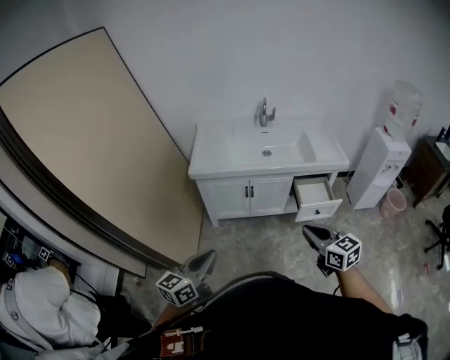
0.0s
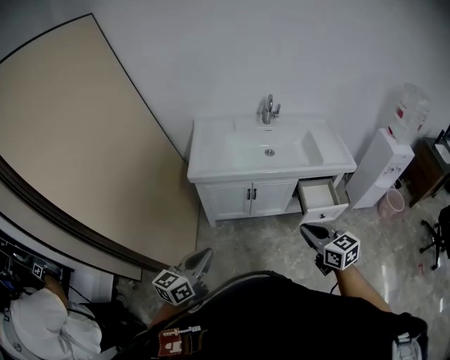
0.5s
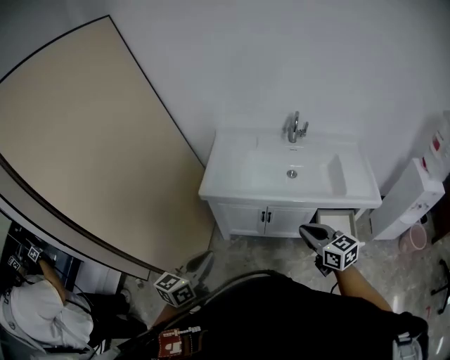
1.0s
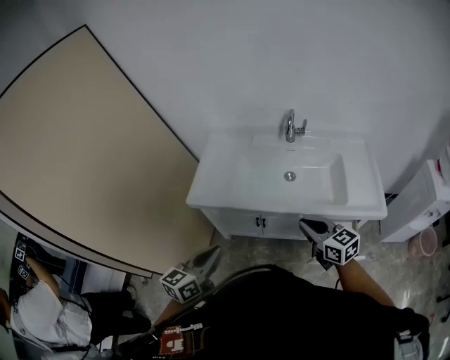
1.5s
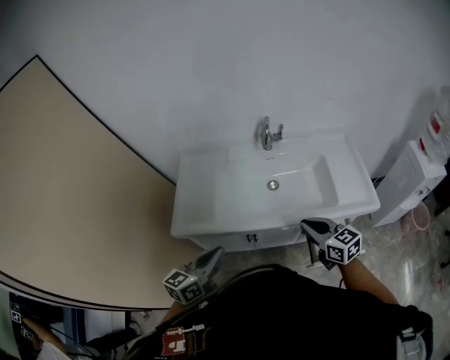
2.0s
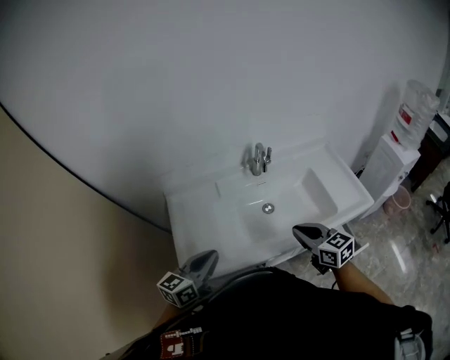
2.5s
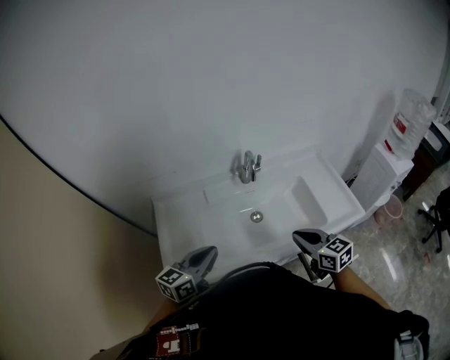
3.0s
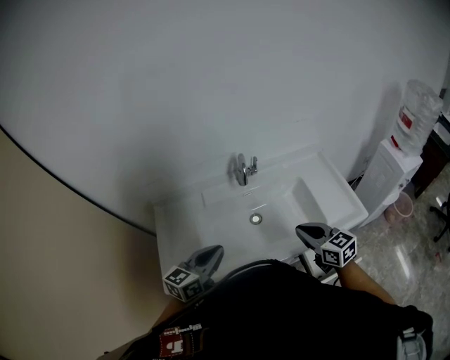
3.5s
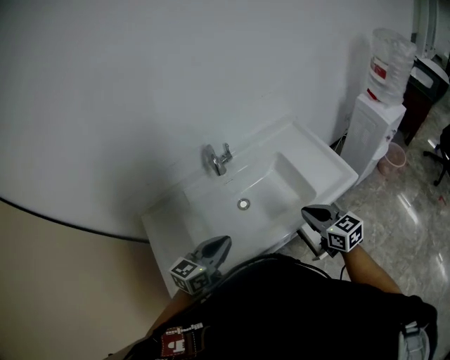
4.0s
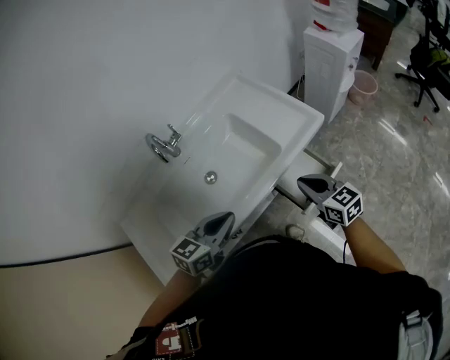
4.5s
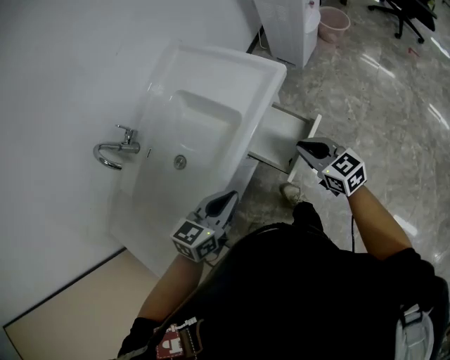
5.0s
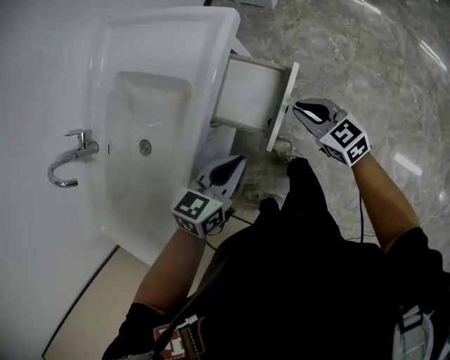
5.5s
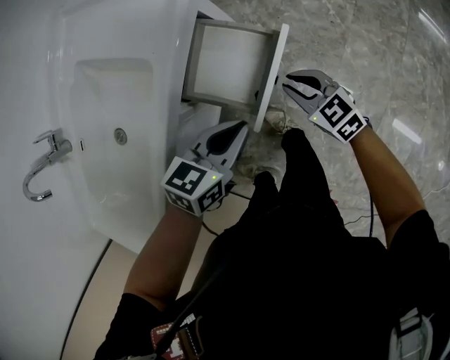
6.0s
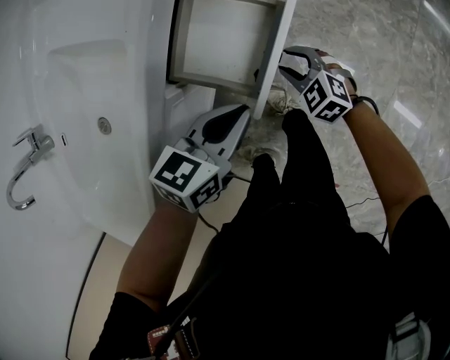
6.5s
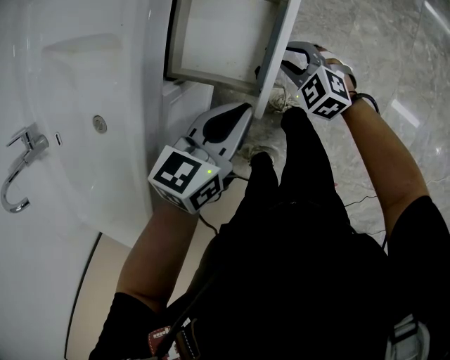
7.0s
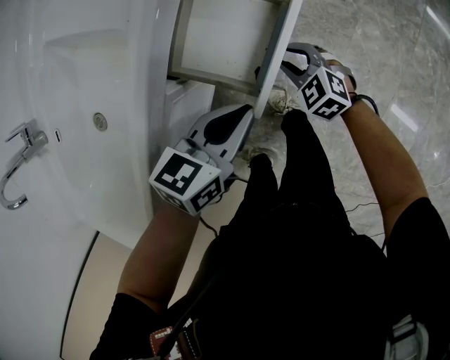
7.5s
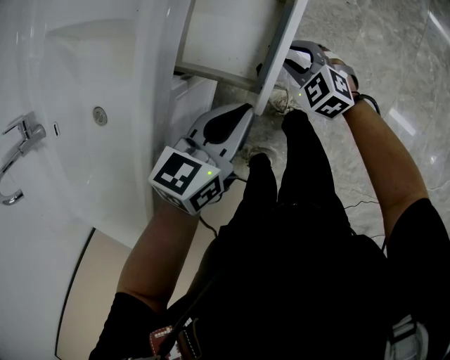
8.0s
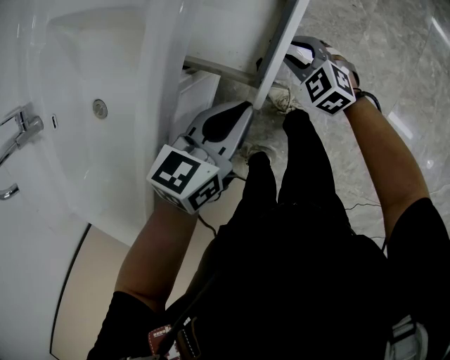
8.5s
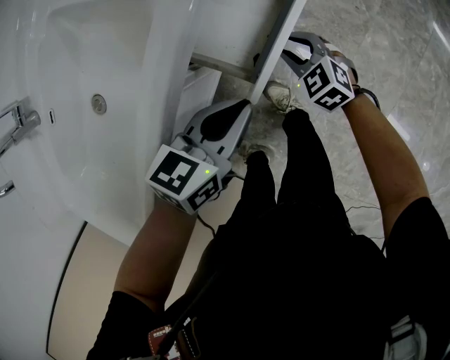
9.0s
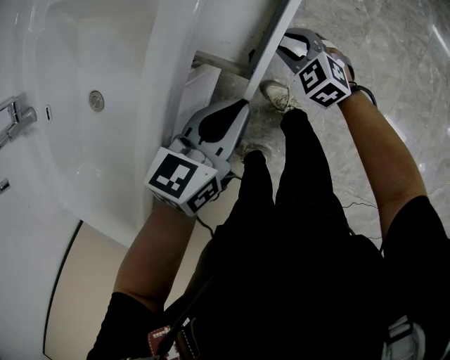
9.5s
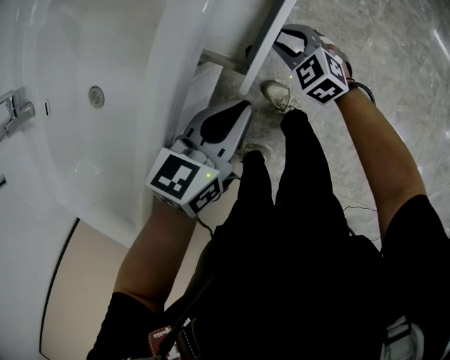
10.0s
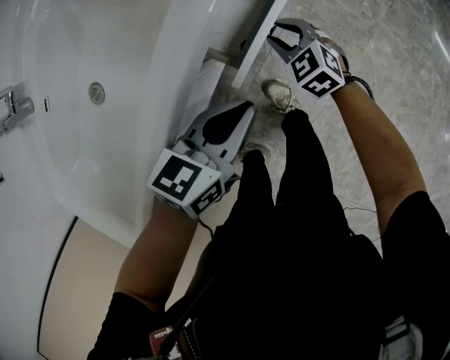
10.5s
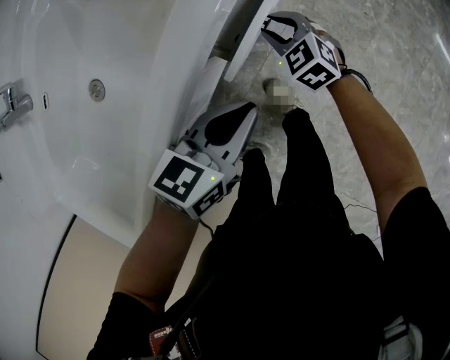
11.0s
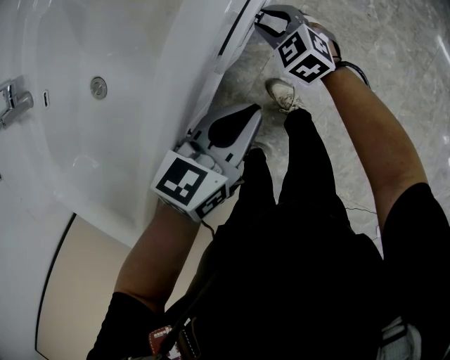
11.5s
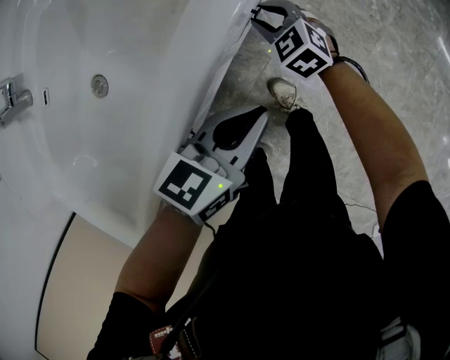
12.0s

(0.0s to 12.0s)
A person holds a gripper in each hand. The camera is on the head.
0.0s - 2.0s: Both grippers are carried forward, some 50 cm.
2.0s - 4.0s: The right gripper moves some 10 cm, and turns by roughly 30 degrees. Meanwhile the left gripper changes place by about 20 cm, and turns by roughly 30 degrees.
4.0s - 6.0s: The left gripper changes place by roughly 50 cm, and turns by approximately 50 degrees, while the right gripper heads downward, covering roughly 35 cm, and rotates some 30 degrees.
6.0s - 8.0s: The right gripper goes roughly 10 cm downward, and turns by about 20 degrees.
8.0s - 10.0s: Both grippers move to the left, roughly 5 cm.
10.0s - 12.0s: The right gripper moves to the left and forward, roughly 10 cm.

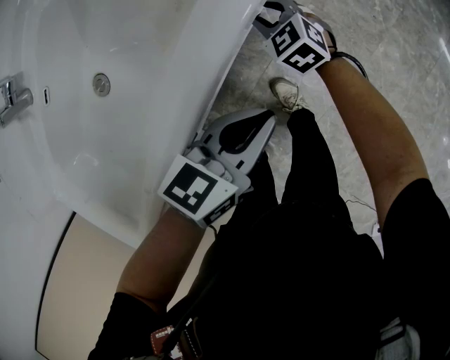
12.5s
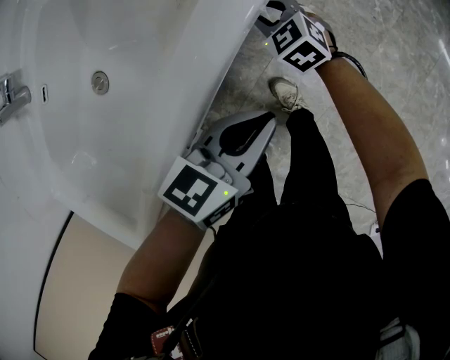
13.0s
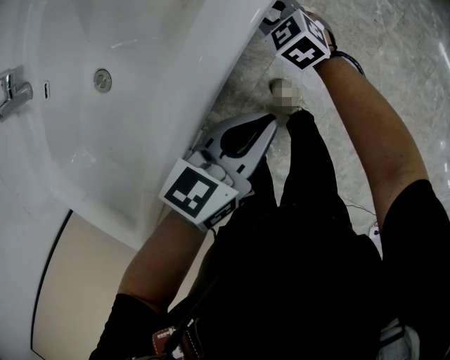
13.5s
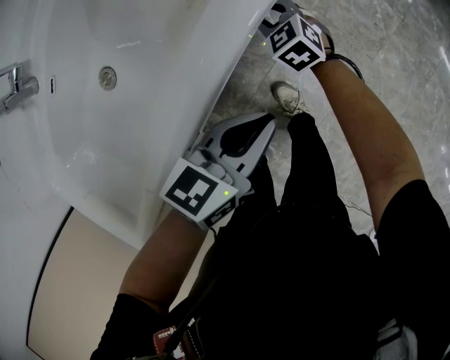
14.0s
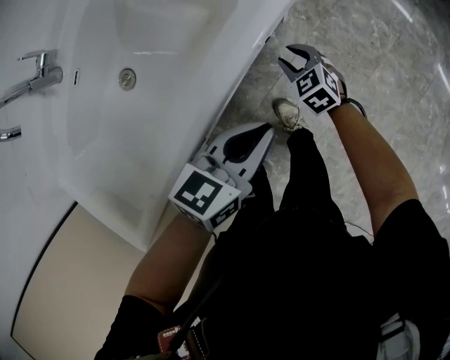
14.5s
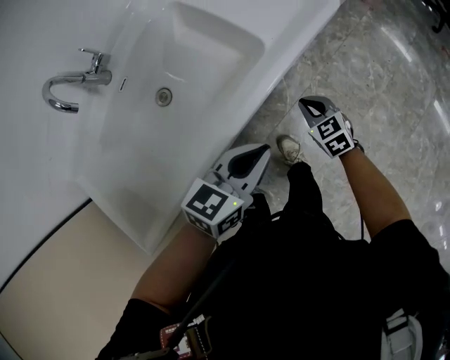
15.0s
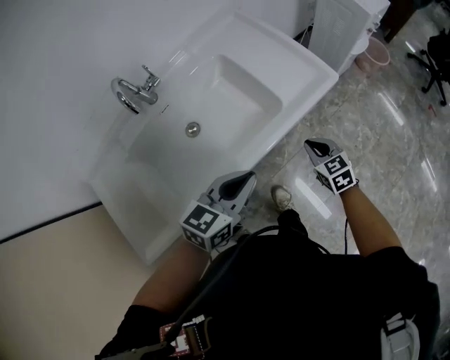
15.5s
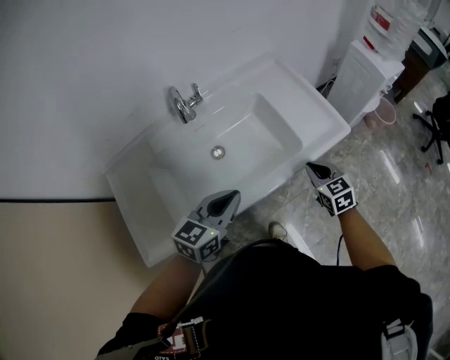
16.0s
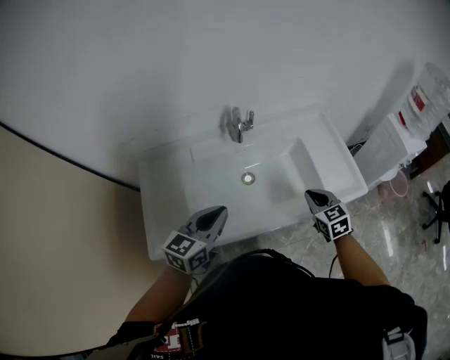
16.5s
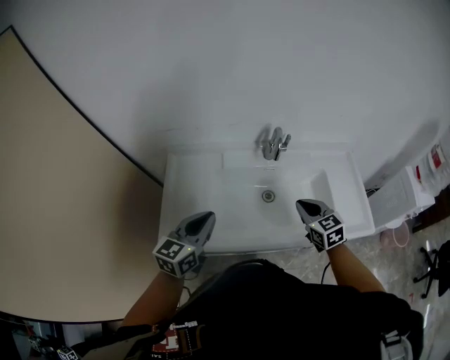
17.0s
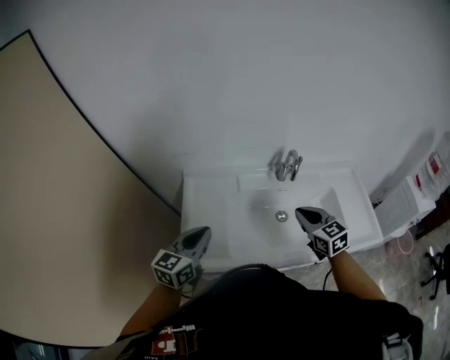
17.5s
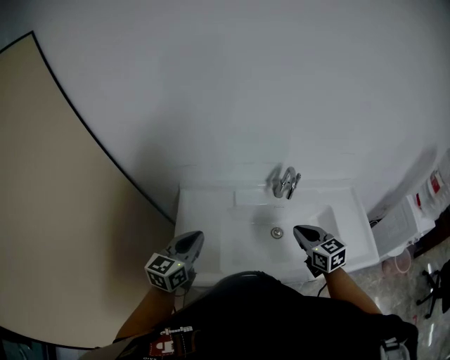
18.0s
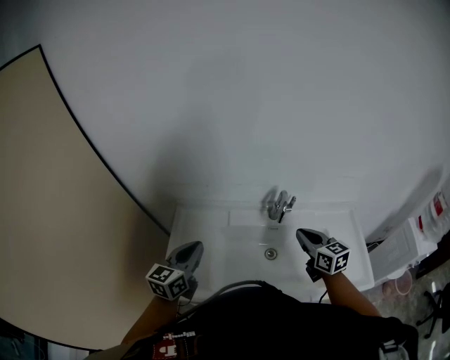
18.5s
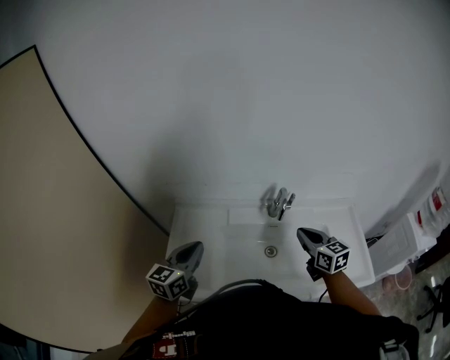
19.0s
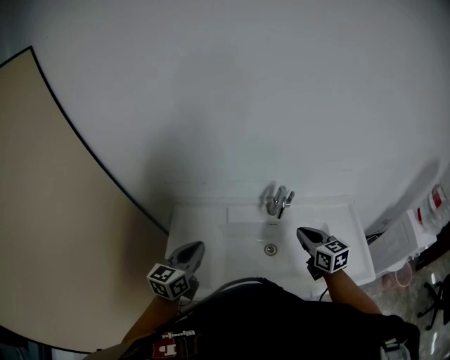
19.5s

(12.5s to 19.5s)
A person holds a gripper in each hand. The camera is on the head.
12.5s - 14.5s: The left gripper shifts by about 5 cm, while the right gripper heads backward, covering approximately 5 cm.
14.5s - 16.0s: The left gripper travels upward and to the left by some 30 cm, and swivels some 30 degrees, while the right gripper moves upward, about 35 cm, and closes its fingers.
16.0s - 17.5s: The left gripper shifts by approximately 35 cm, and turns by approximately 40 degrees, while the right gripper ends up roughly 35 cm from where it was, and changes its angle by approximately 30 degrees.
17.5s - 19.5s: The left gripper shifts roughly 10 cm forward and to the right. The right gripper moves to the right and forward, roughly 10 cm.

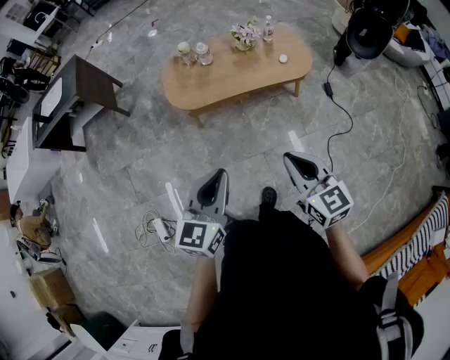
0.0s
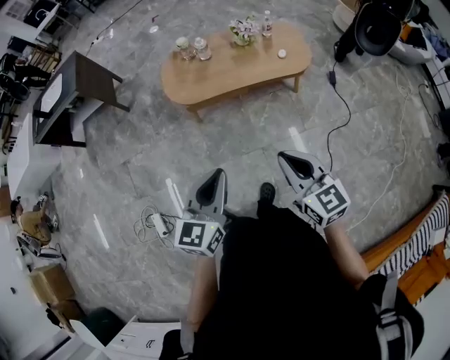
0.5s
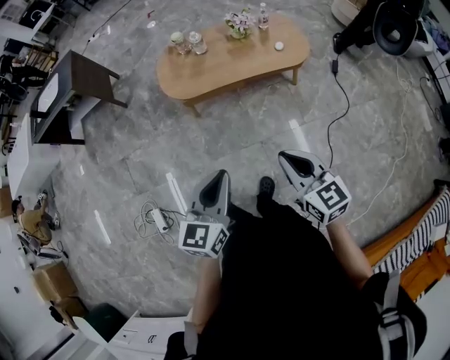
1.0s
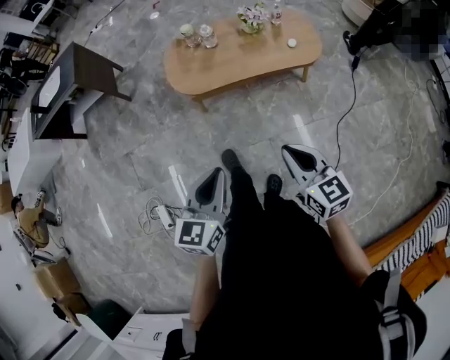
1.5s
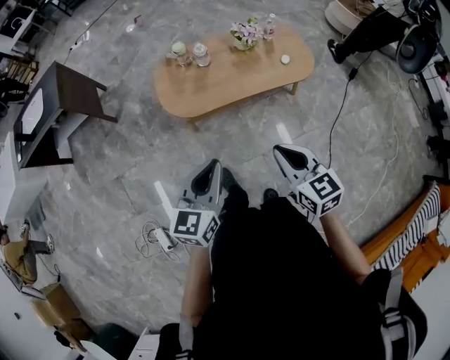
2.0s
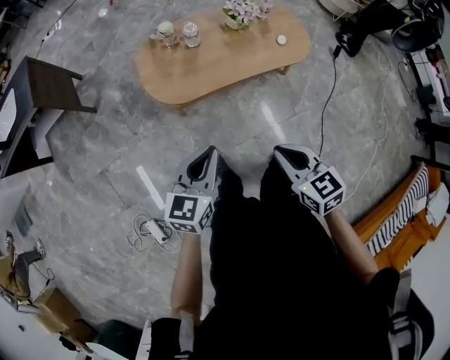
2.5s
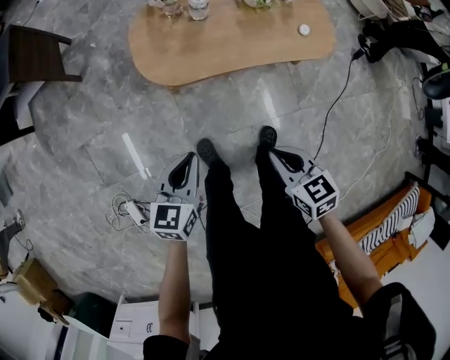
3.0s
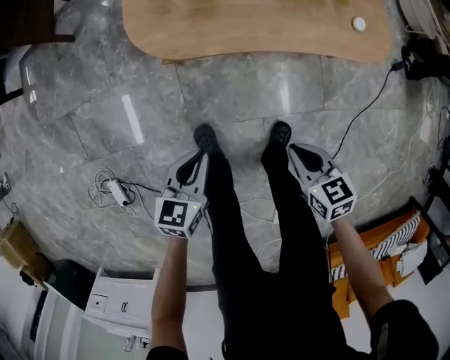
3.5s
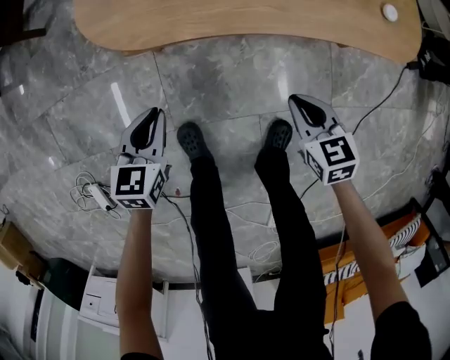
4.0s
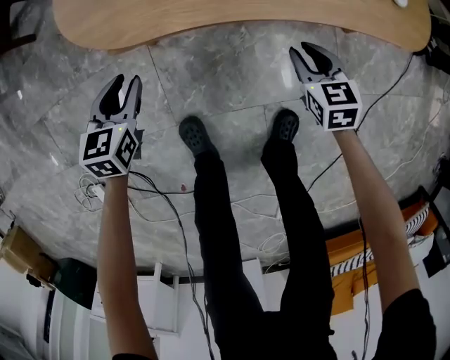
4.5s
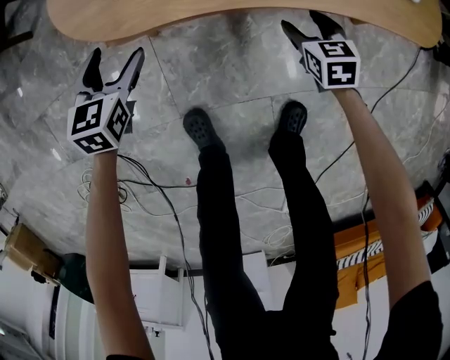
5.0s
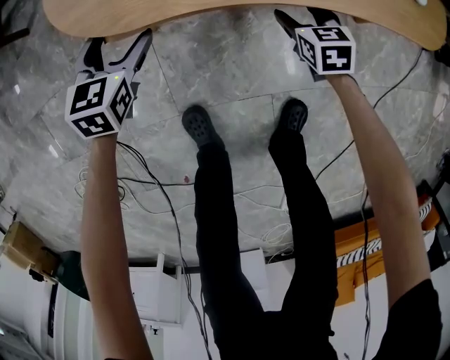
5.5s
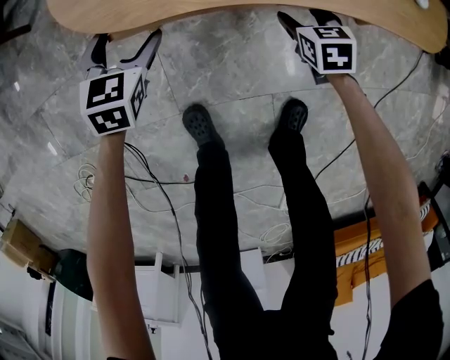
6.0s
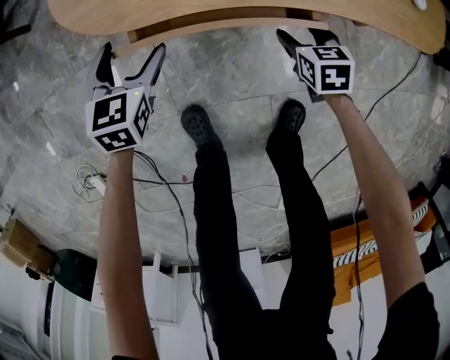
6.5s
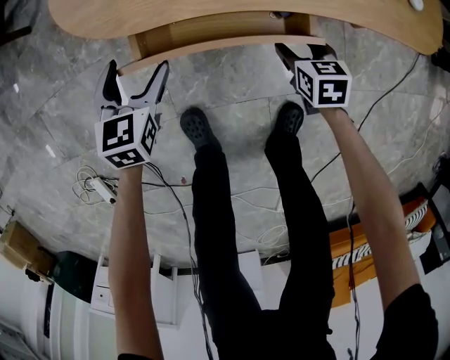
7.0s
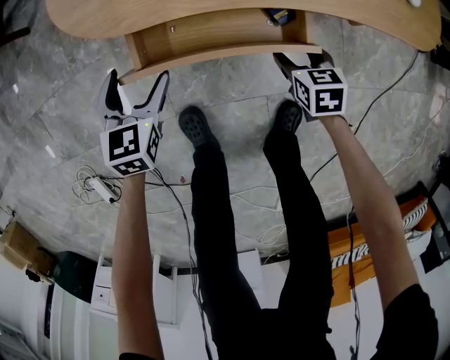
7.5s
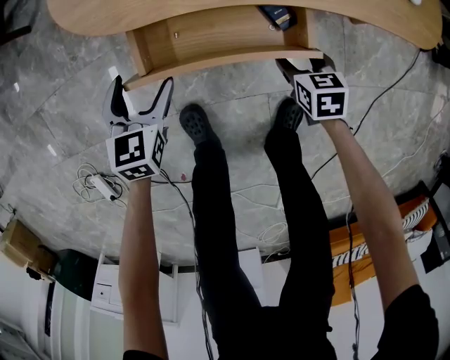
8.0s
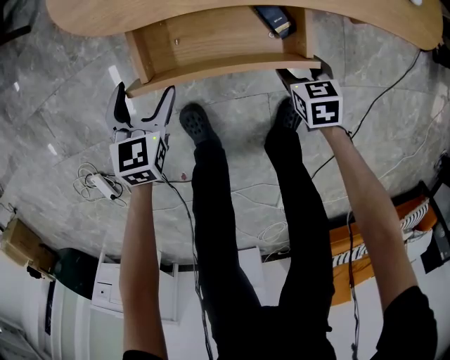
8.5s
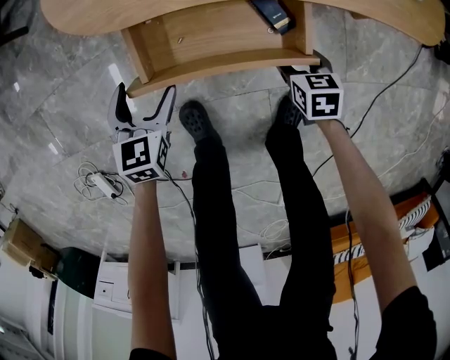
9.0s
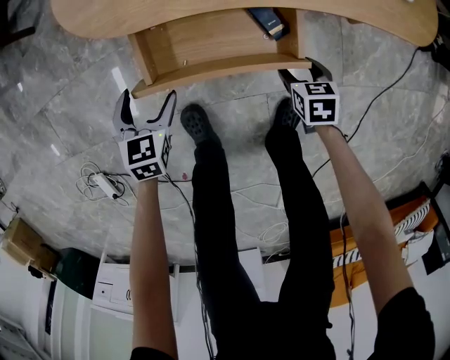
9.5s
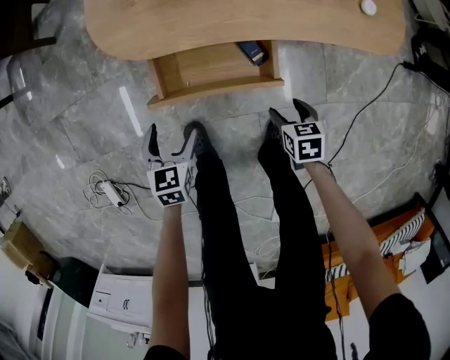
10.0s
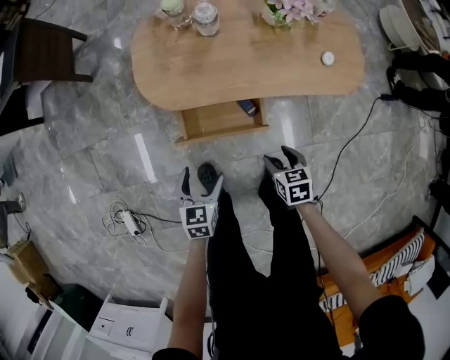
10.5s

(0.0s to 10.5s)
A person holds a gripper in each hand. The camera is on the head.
0.0s - 2.0s: The grippers both shift forward and to the left by about 15 cm.
2.0s - 4.0s: The grippers both shift downward by about 60 cm. The right gripper swivels roughly 30 degrees. The left gripper rotates approximately 30 degrees.
4.0s - 6.5s: The right gripper goes about 20 cm downward and forward, and opens. Meanwhile the left gripper travels forward and downward by approximately 15 cm, and opens.
6.5s - 8.5s: The grippers both shift backward by approximately 10 cm.
8.5s - 10.5s: The two grippers go about 25 cm upward.
